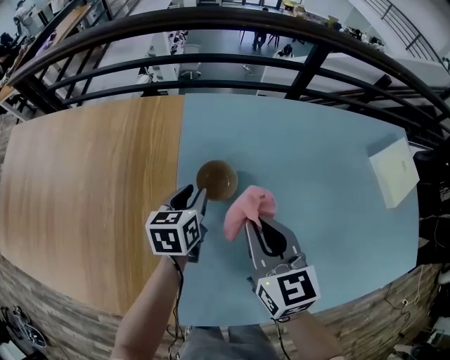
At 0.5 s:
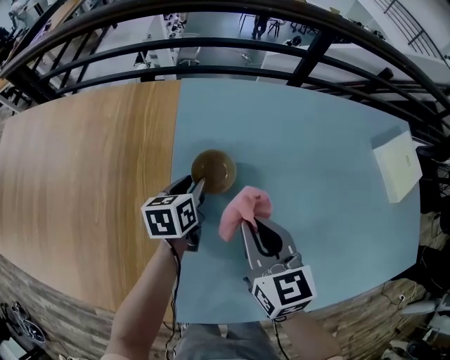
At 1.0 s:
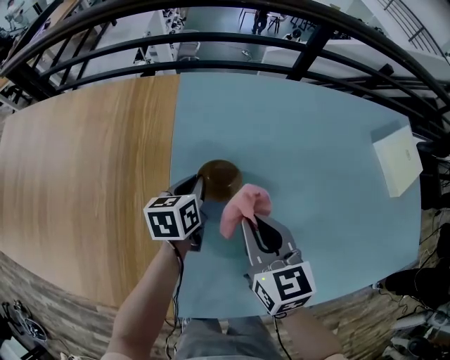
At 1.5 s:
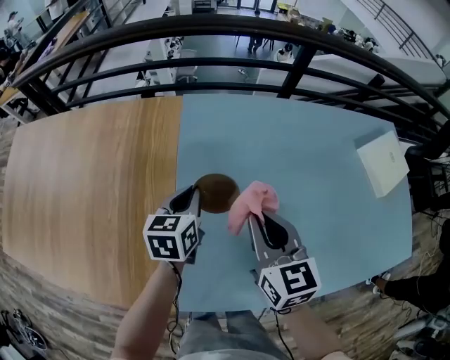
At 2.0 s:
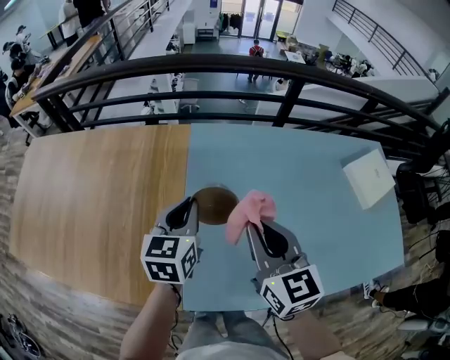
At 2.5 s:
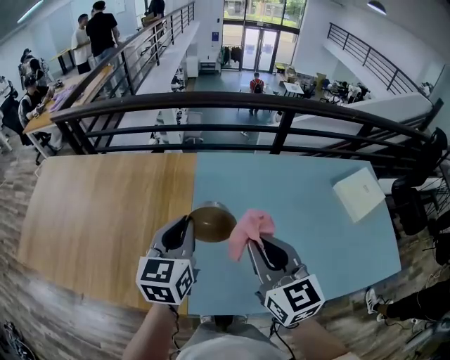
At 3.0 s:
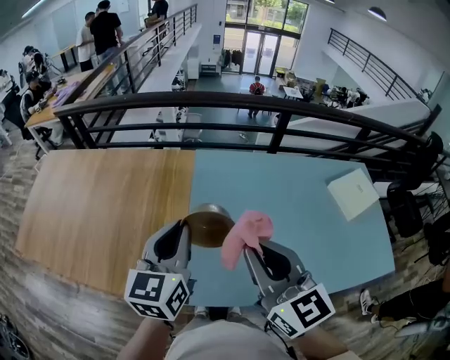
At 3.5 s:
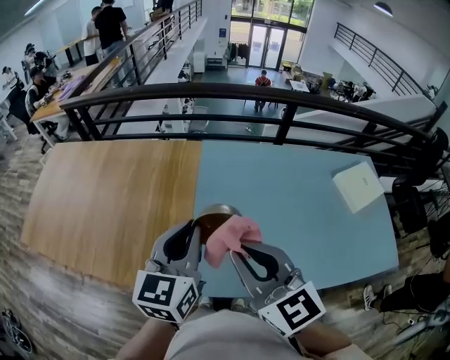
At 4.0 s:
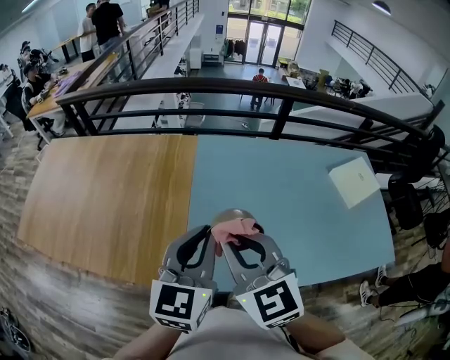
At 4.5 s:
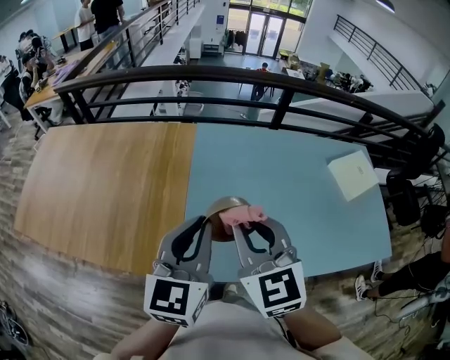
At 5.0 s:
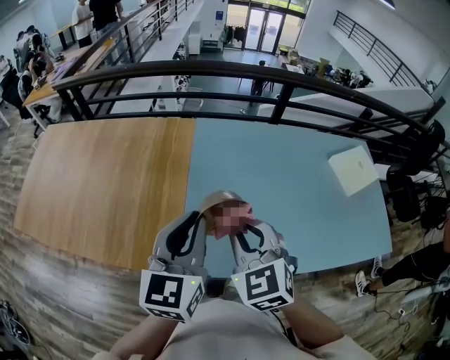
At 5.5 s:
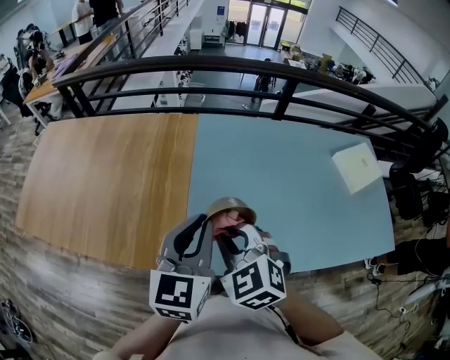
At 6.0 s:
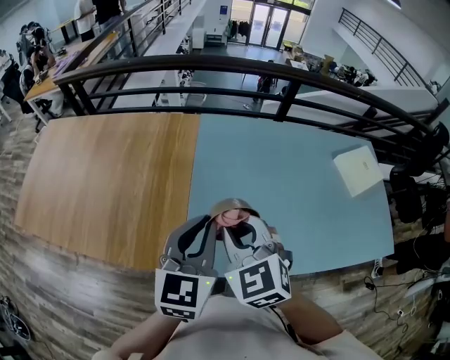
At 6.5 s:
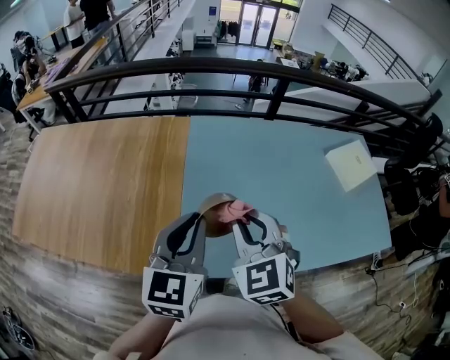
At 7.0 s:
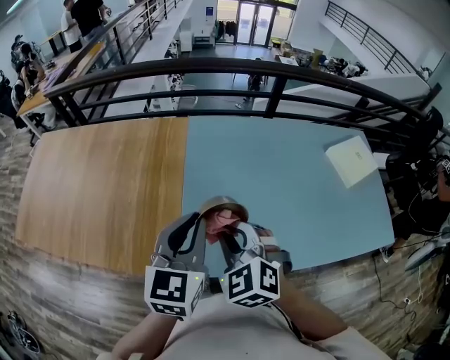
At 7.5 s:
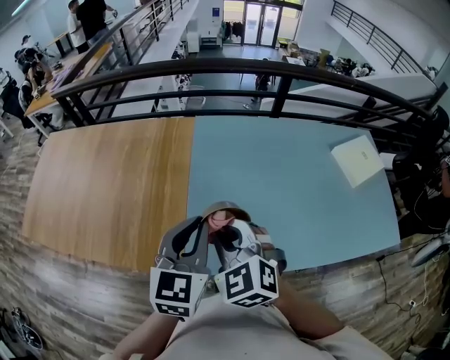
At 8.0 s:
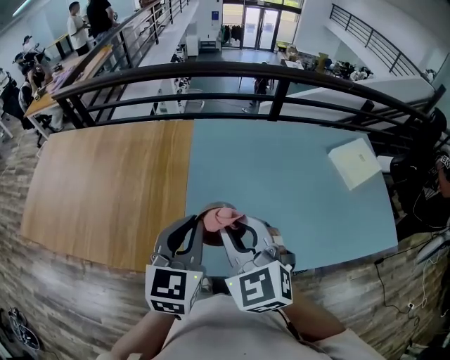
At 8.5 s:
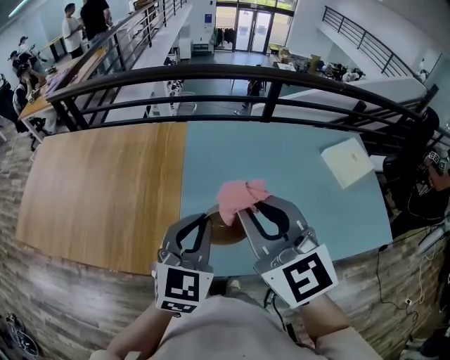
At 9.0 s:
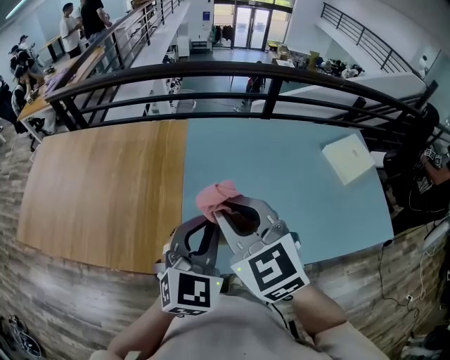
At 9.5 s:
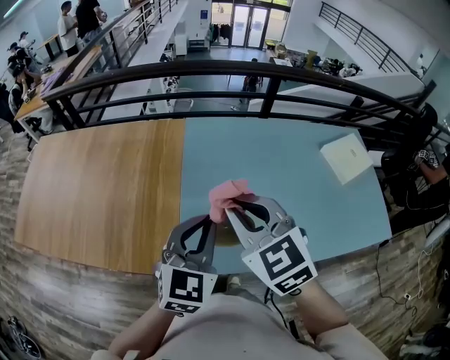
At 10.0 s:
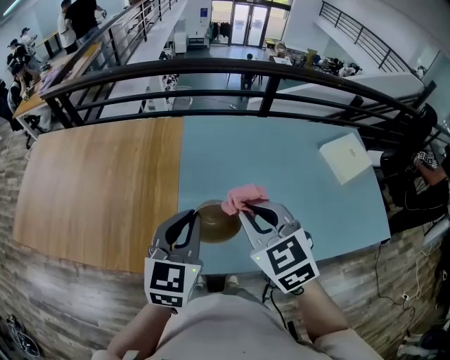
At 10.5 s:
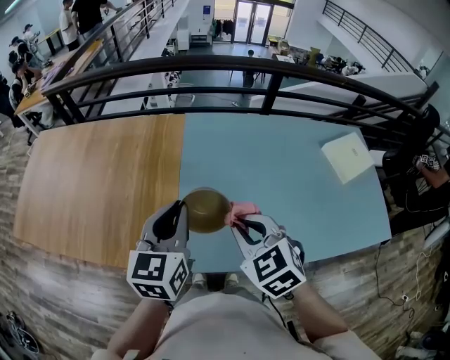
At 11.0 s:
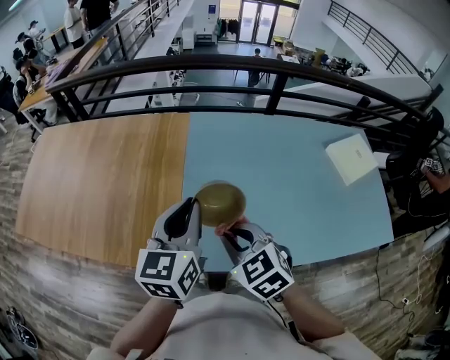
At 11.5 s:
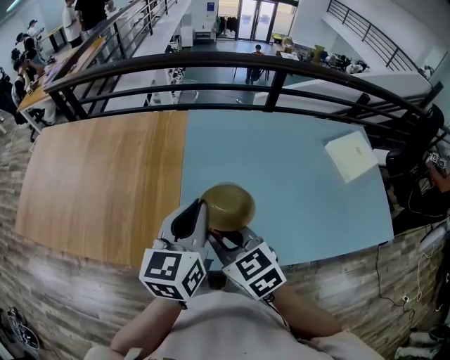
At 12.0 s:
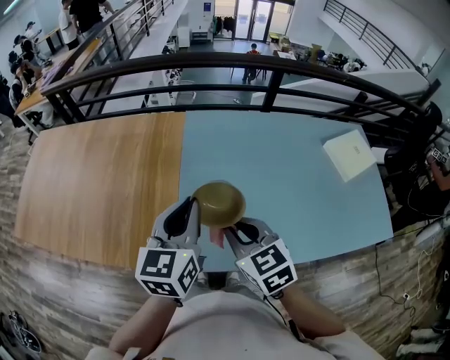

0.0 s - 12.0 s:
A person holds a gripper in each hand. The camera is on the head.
0.0 s - 2.0 s: The grippers both shift upward and backward by roughly 20 cm. The left gripper closes.
2.0 s - 4.0 s: The left gripper travels backward and upward by about 30 cm; the right gripper goes some 25 cm backward, upward and to the left, and turns by about 20 degrees.
4.0 s - 6.0 s: The right gripper heads downward, covering roughly 5 cm, while the left gripper changes place by approximately 5 cm.
6.0 s - 8.0 s: The right gripper shifts by roughly 5 cm.
8.0 s - 10.0 s: The right gripper reaches roughly 10 cm upward, then returns.
10.0 s - 12.0 s: The right gripper moves downward, roughly 5 cm.

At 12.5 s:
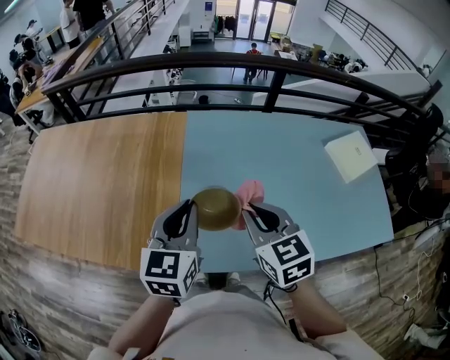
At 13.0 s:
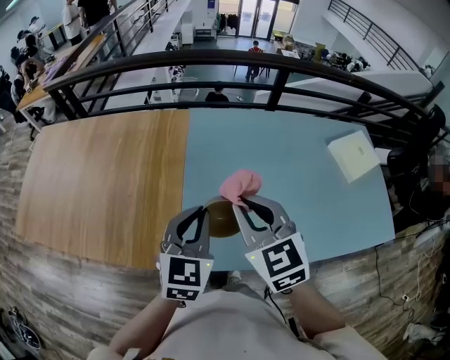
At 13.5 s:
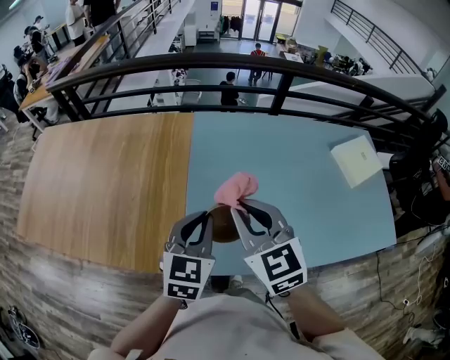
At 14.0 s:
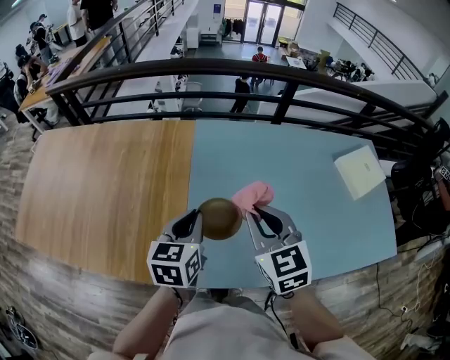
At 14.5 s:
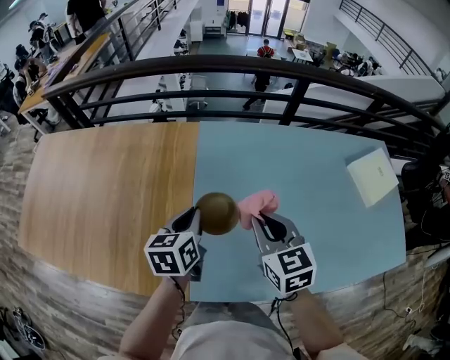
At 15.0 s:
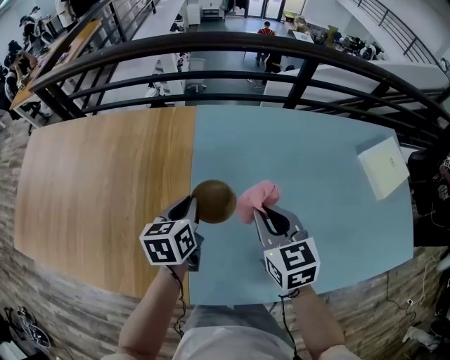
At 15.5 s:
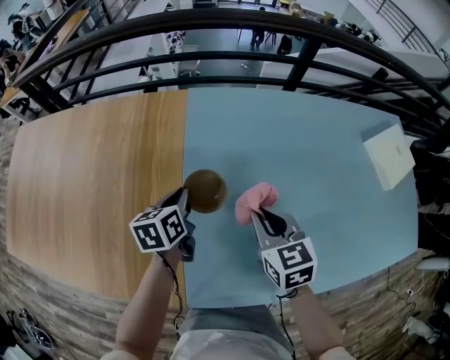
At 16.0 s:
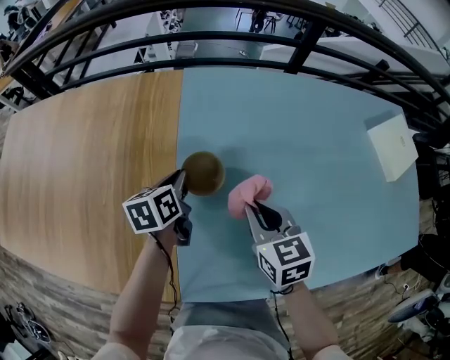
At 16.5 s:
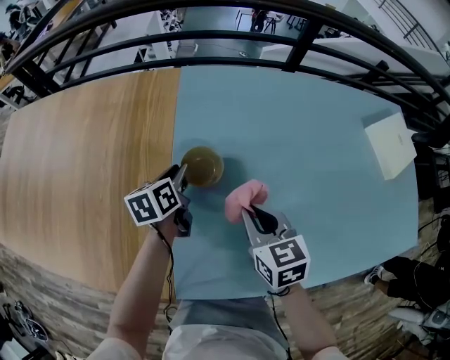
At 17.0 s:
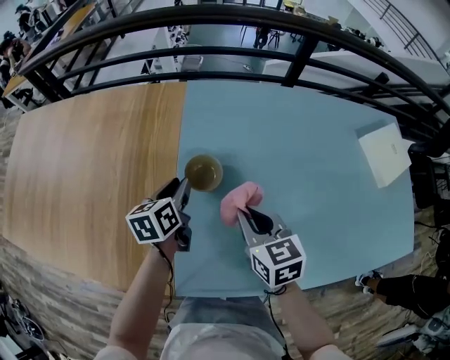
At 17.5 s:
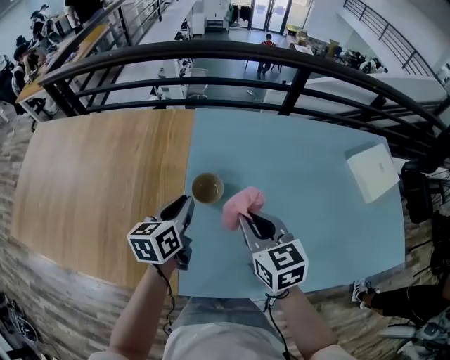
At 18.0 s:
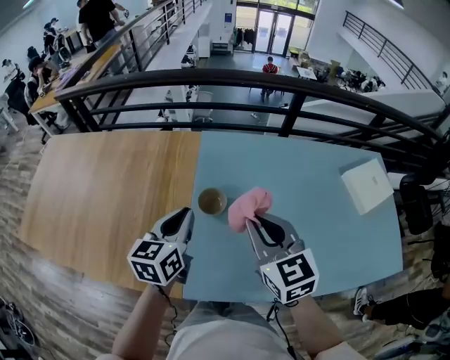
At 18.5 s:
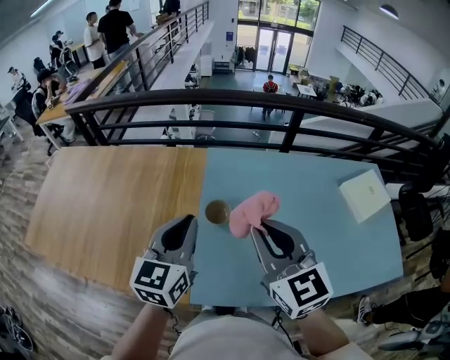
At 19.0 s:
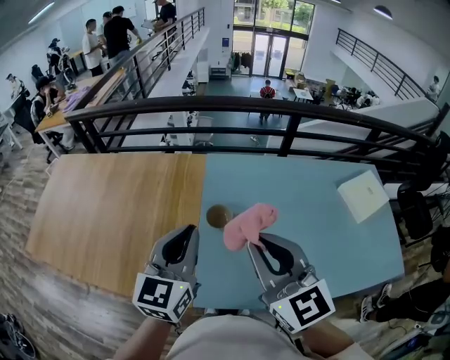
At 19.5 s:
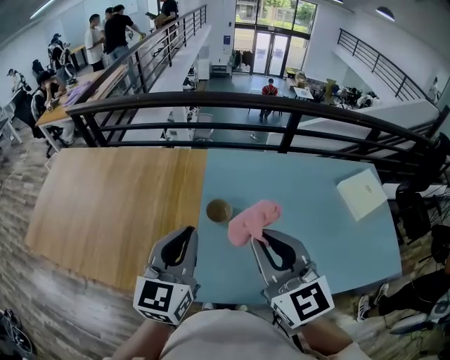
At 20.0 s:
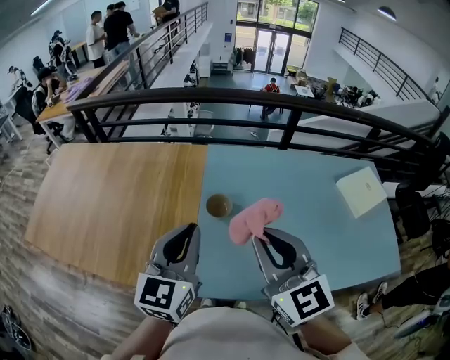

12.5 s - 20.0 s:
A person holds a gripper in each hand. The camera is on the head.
12.5 s - 14.5 s: The grippers both shift forward and downward by roughly 20 cm. The left gripper changes its angle by roughly 30 degrees.
14.5 s - 16.5 s: The right gripper travels downward by roughly 25 cm. Meanwhile the left gripper shifts roughly 25 cm downward and forward, and opens its fingers.
16.5 s - 18.0 s: The left gripper shifts some 35 cm upward and backward, changes its angle by about 30 degrees, and closes. The right gripper moves upward, some 30 cm, and changes its angle by roughly 20 degrees.
18.0 s - 20.0 s: The two grippers go approximately 15 cm upward and backward. The left gripper swivels approximately 20 degrees.

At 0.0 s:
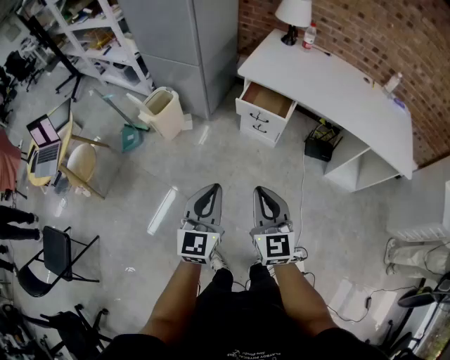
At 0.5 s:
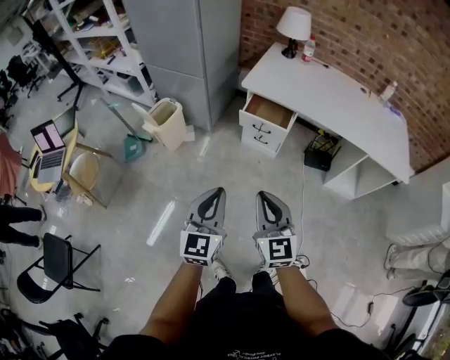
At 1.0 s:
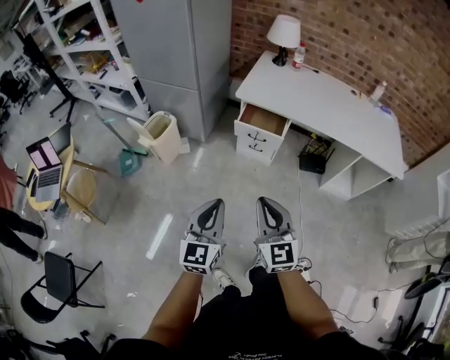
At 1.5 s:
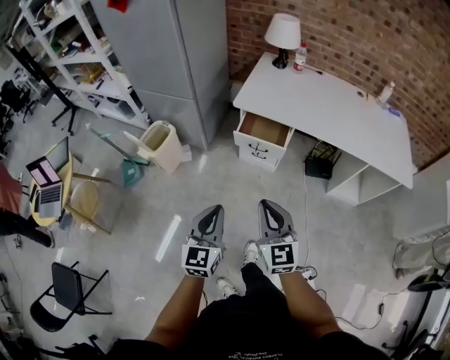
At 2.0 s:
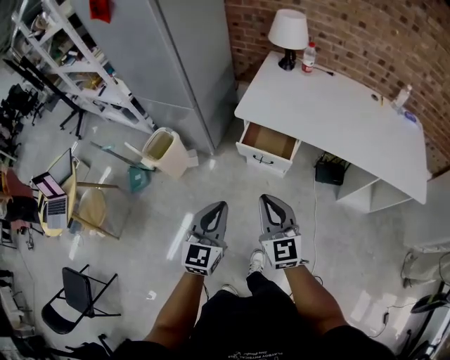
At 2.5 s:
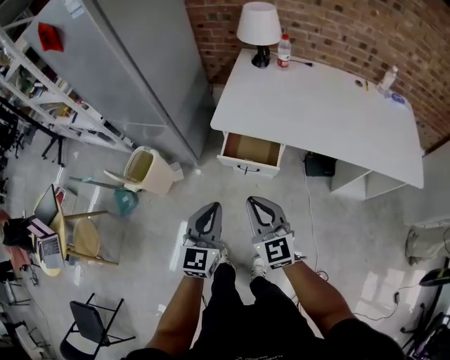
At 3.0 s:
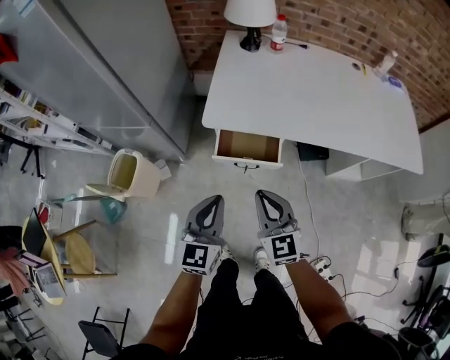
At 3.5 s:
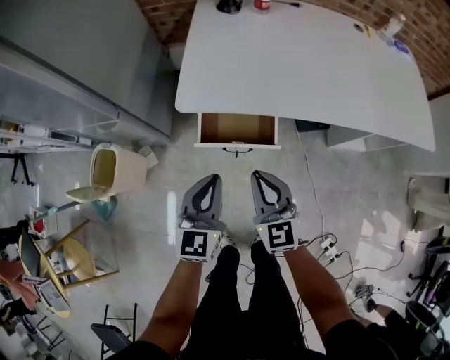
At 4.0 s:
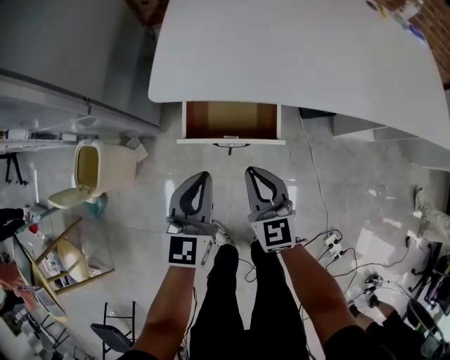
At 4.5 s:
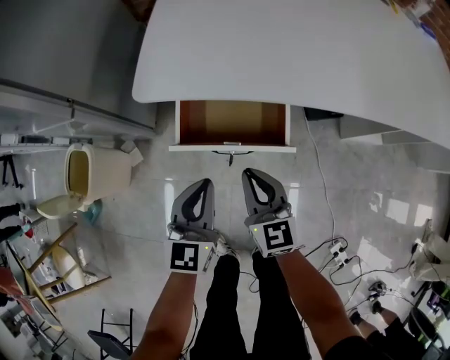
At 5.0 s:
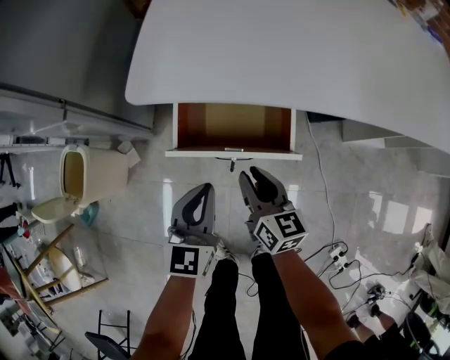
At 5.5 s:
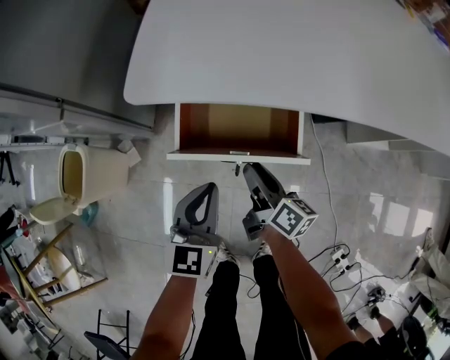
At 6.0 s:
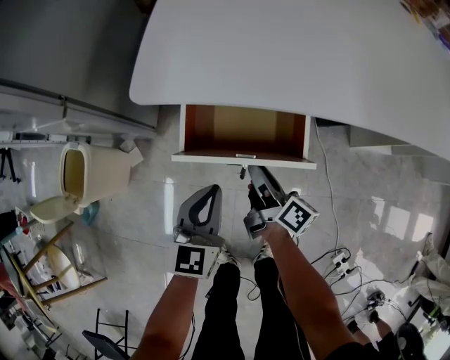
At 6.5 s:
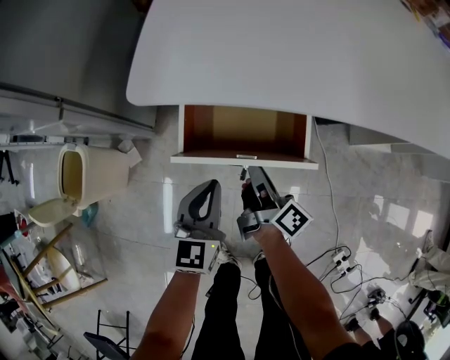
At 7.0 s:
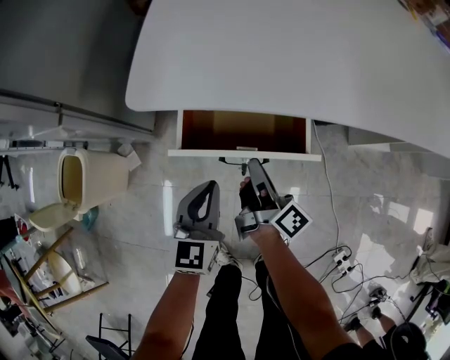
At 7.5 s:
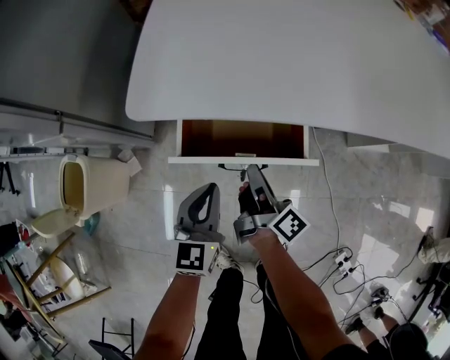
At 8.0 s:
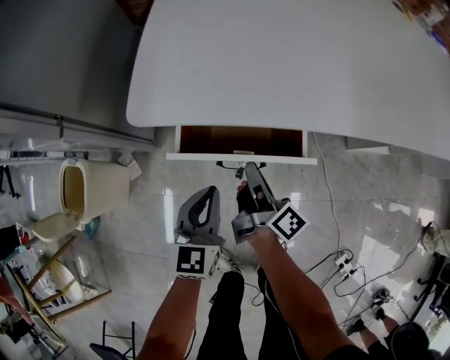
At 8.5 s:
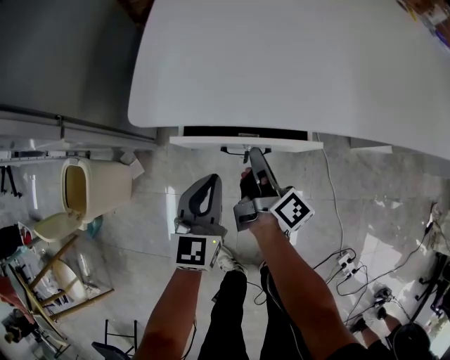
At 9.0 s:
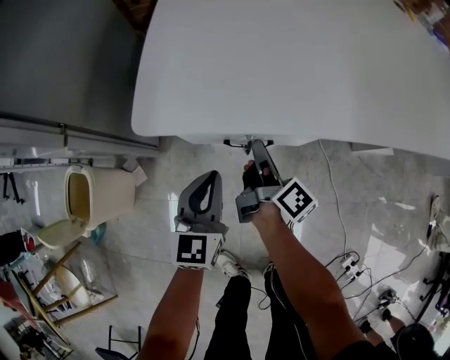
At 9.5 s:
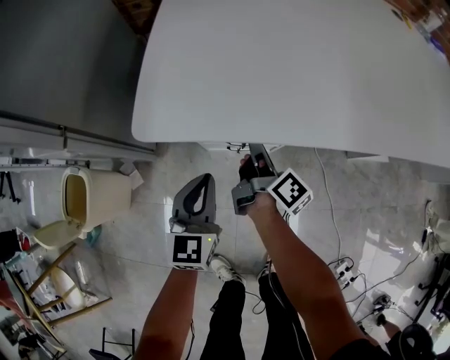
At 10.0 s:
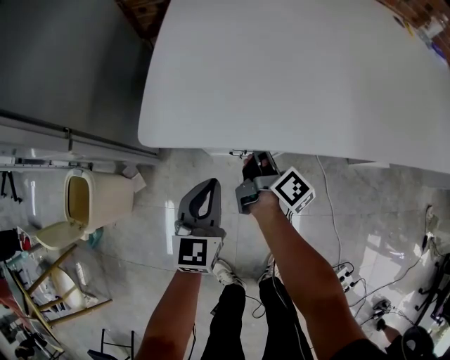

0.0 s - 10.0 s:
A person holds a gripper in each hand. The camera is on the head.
0.0 s - 2.0 s: Both grippers travel together forward, about 20 cm.
2.0 s - 4.0 s: The left gripper moves forward and downward, about 35 cm, while the right gripper shifts approximately 35 cm downward and forward.
4.0 s - 6.0 s: The left gripper is displaced downward by roughly 15 cm; the right gripper heads downward and forward, covering roughly 15 cm, twists roughly 70 degrees clockwise, seen from behind, and opens.
6.0 s - 8.0 s: The grippers stay close to where they were, moving slightly.
8.0 s - 10.0 s: The right gripper travels forward by some 10 cm; the left gripper travels forward by some 5 cm.
